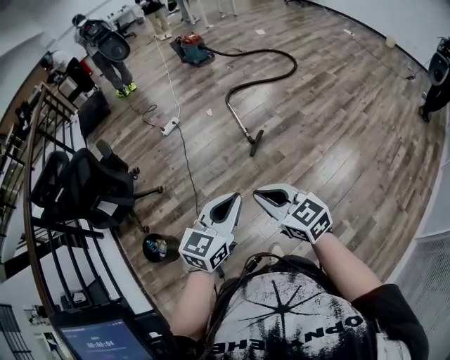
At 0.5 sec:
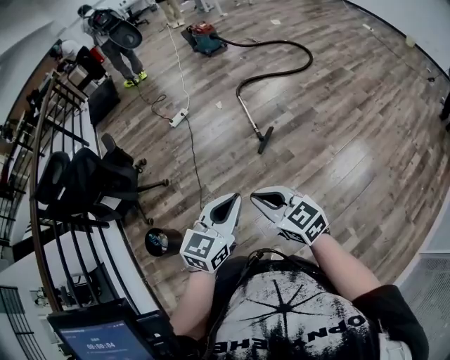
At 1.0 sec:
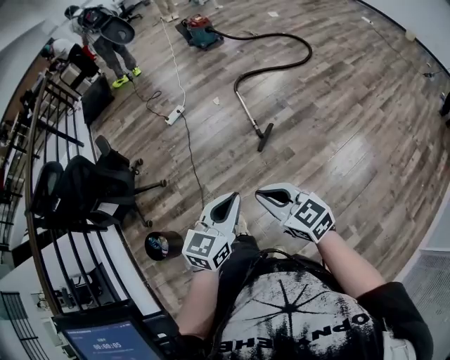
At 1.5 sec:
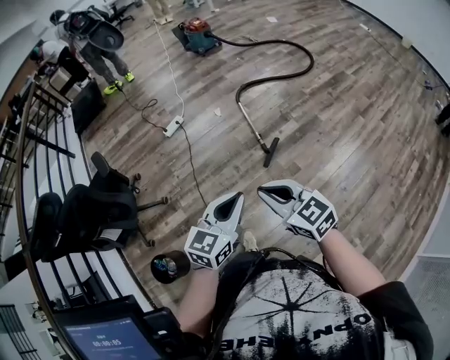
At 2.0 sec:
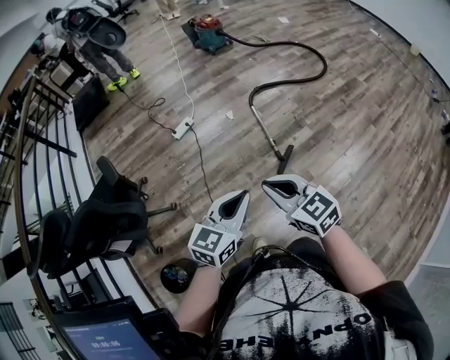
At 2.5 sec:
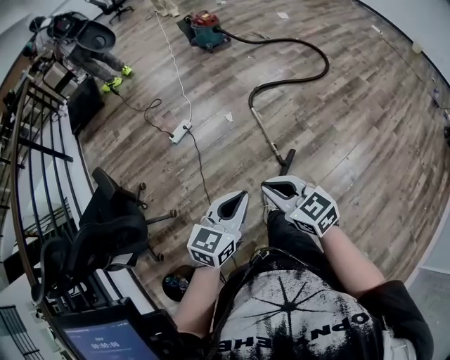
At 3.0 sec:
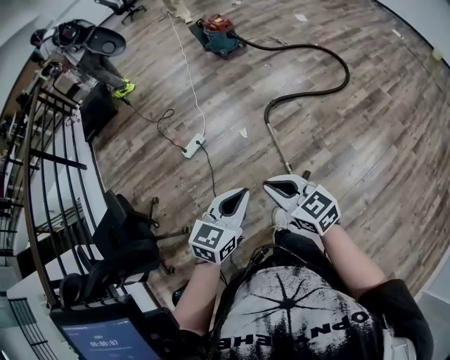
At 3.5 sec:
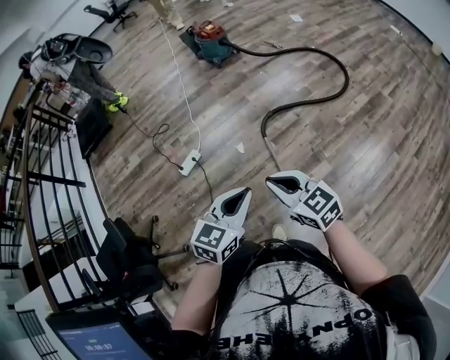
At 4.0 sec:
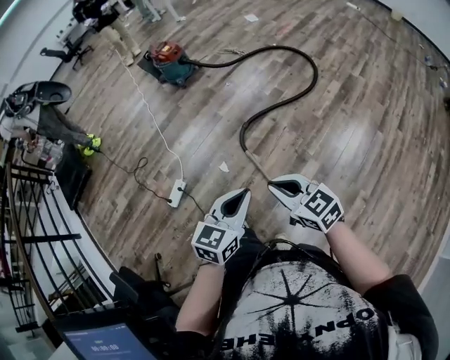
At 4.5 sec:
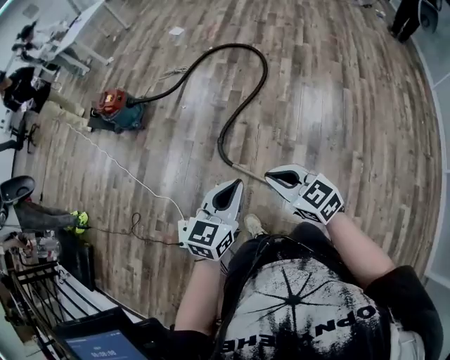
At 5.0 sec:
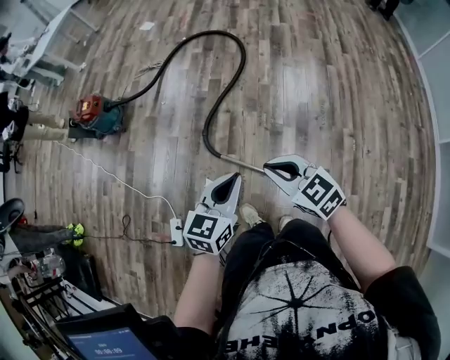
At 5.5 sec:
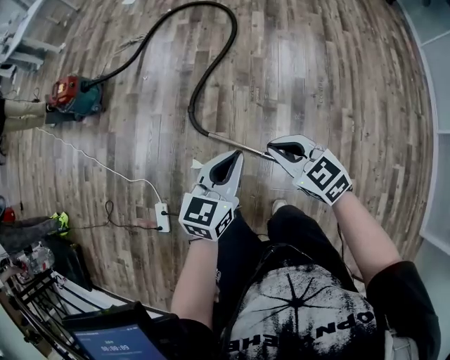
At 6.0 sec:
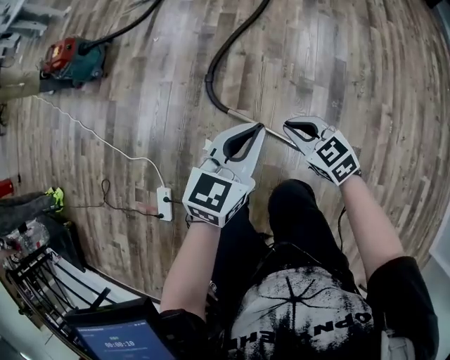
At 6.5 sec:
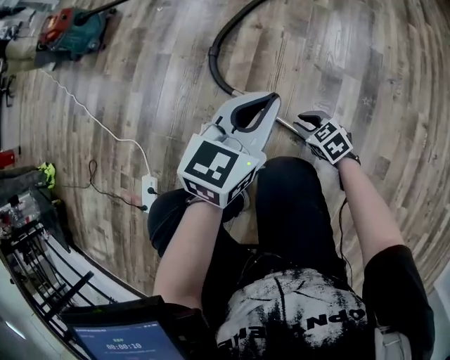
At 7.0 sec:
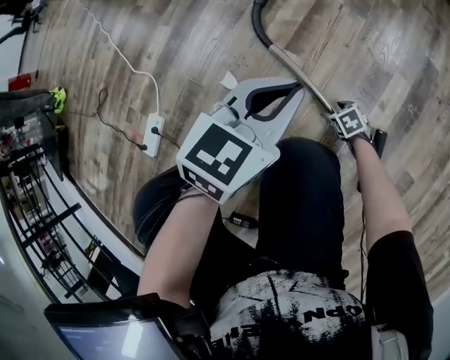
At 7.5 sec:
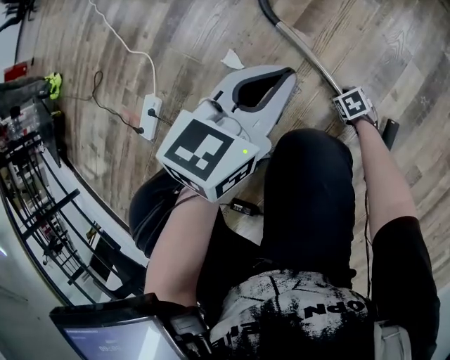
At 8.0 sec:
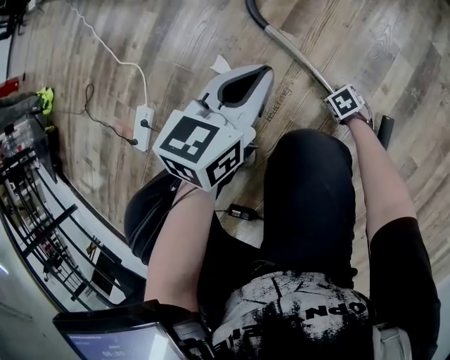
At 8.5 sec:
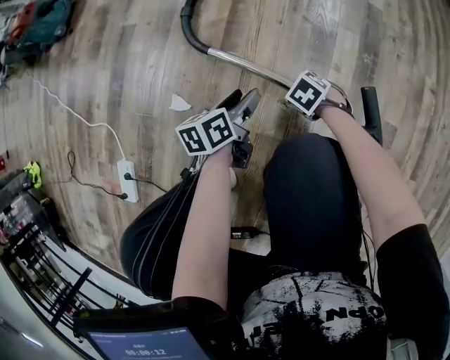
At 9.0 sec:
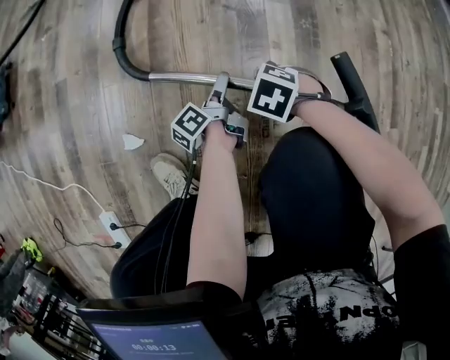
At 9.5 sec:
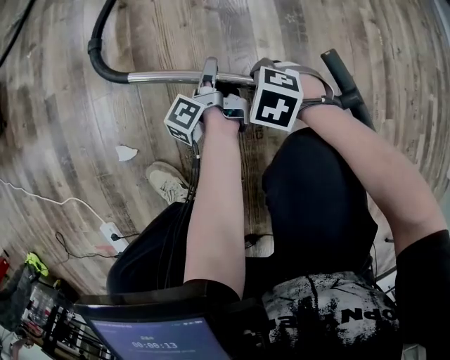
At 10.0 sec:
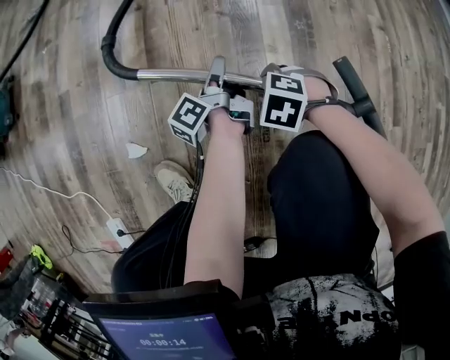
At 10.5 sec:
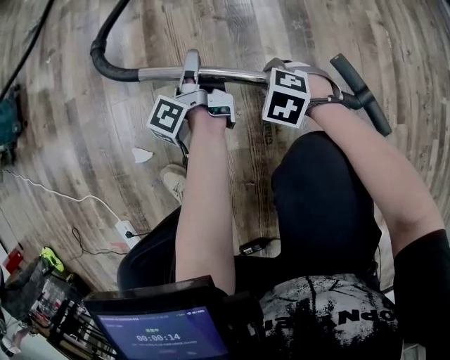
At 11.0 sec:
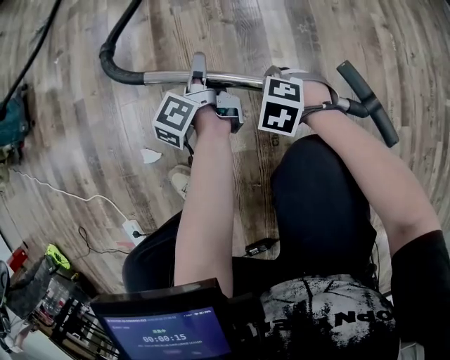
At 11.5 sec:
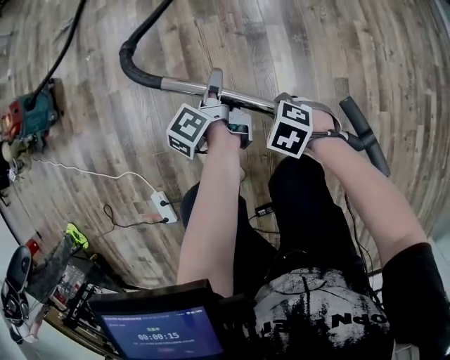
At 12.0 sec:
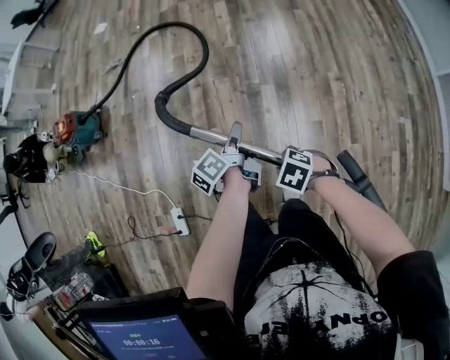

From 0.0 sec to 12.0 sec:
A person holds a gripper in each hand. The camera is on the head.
From 0.0 sec to 2.0 sec: Both grippers are carried forward, approximately 40 cm.
From 2.0 sec to 4.0 sec: The two grippers travel together, forward, about 50 cm.
From 4.0 sec to 6.0 sec: Both grippers travel together downward, roughly 35 cm. The left gripper turns by approximately 30 degrees. Meanwhile the right gripper swivels about 30 degrees.
From 6.0 sec to 8.0 sec: The right gripper shifts about 60 cm downward, tilts its fingers about 40 degrees downward, and opens. Meanwhile the left gripper is displaced downward by about 30 cm, and swivels approximately 20 degrees.
From 8.0 sec to 10.0 sec: The left gripper goes some 20 cm downward, rolls counterclockwise, seen from behind, by some 70 degrees, and opens. The right gripper moves upward, approximately 15 cm.
From 10.0 sec to 12.0 sec: Both grippers move upward, roughly 50 cm.

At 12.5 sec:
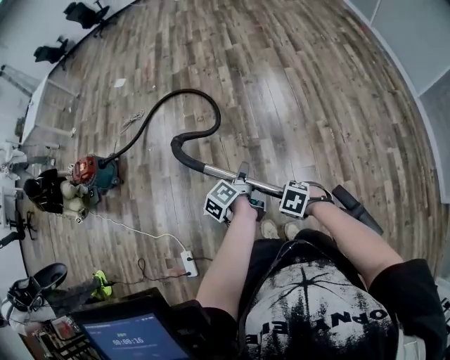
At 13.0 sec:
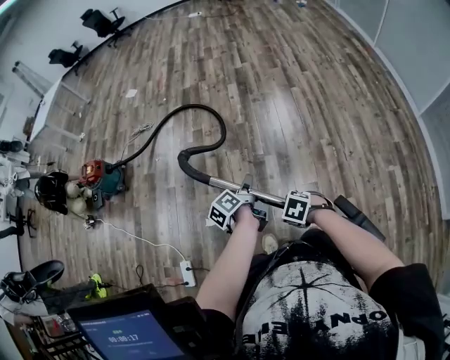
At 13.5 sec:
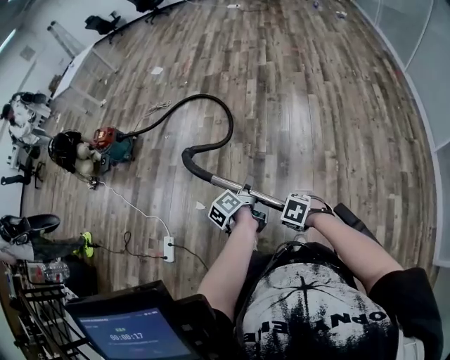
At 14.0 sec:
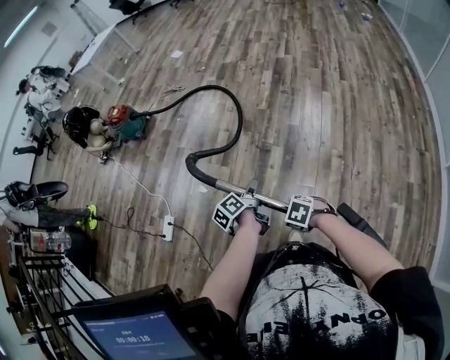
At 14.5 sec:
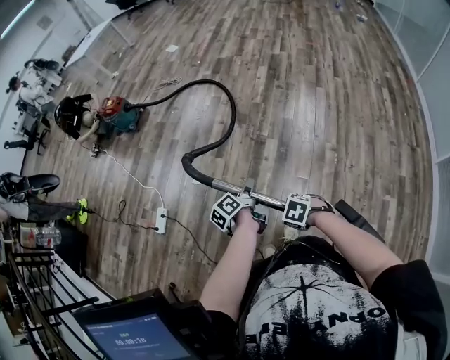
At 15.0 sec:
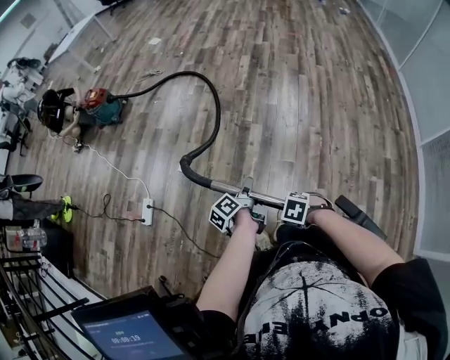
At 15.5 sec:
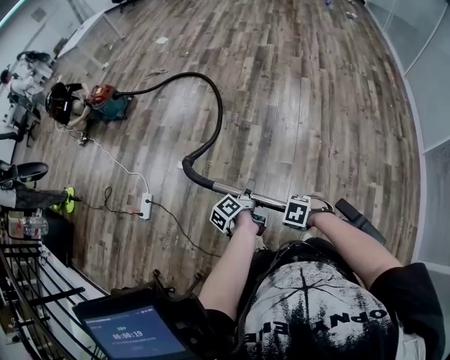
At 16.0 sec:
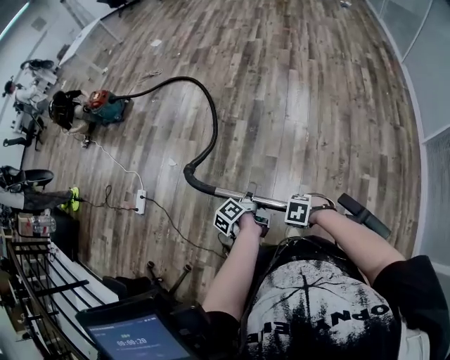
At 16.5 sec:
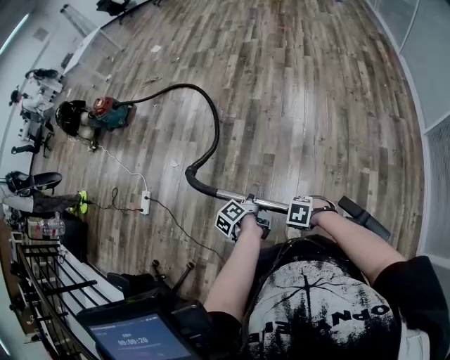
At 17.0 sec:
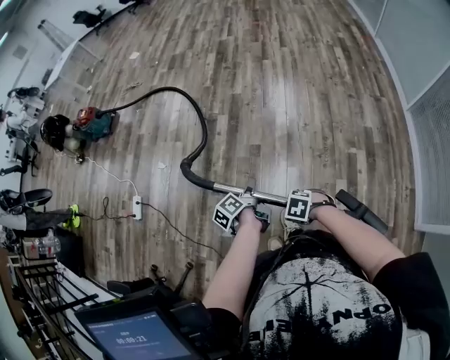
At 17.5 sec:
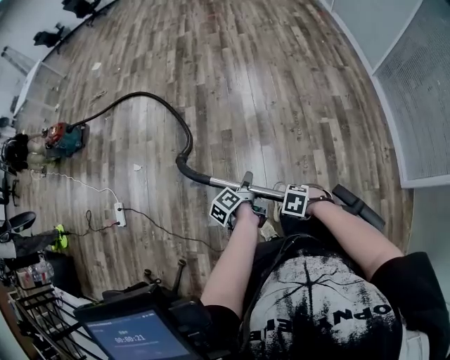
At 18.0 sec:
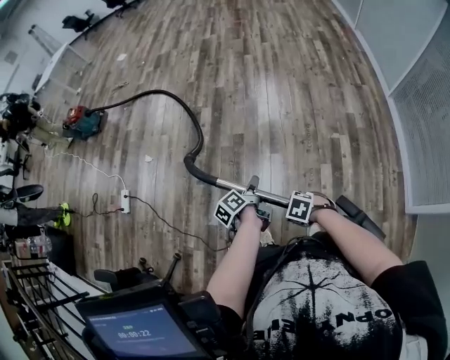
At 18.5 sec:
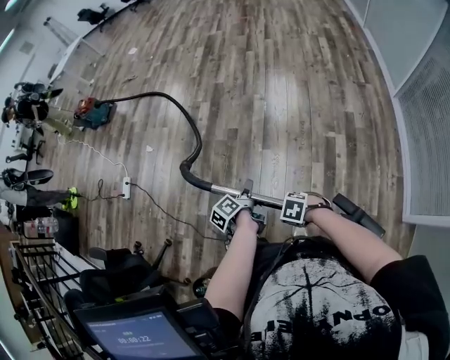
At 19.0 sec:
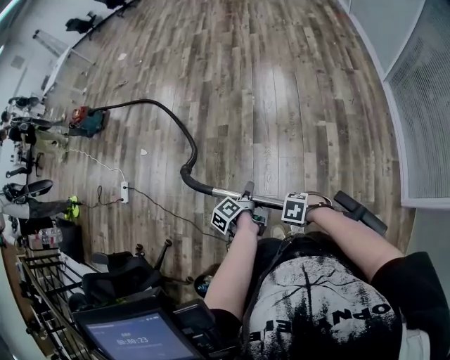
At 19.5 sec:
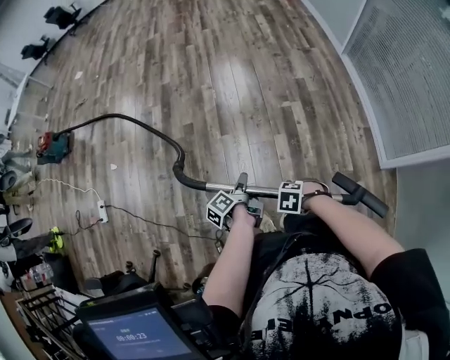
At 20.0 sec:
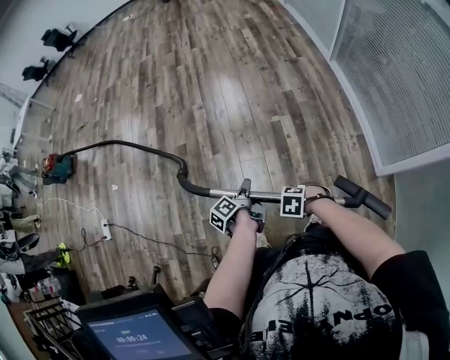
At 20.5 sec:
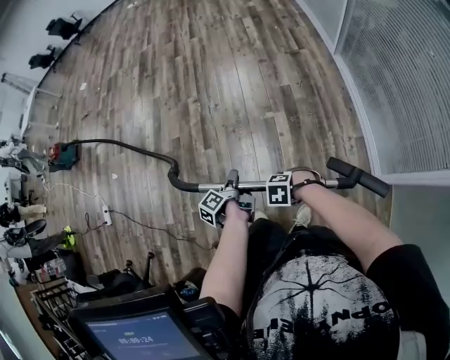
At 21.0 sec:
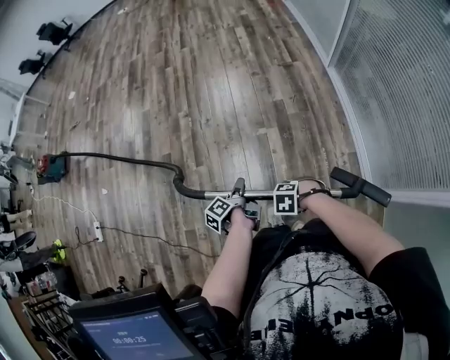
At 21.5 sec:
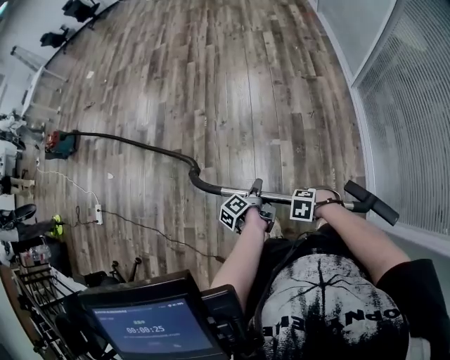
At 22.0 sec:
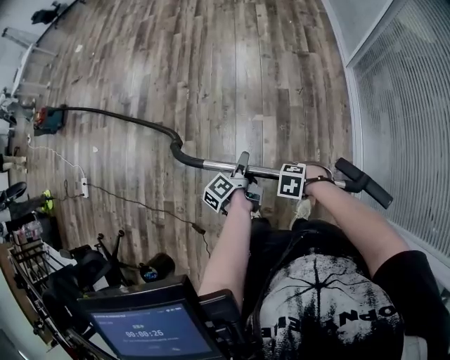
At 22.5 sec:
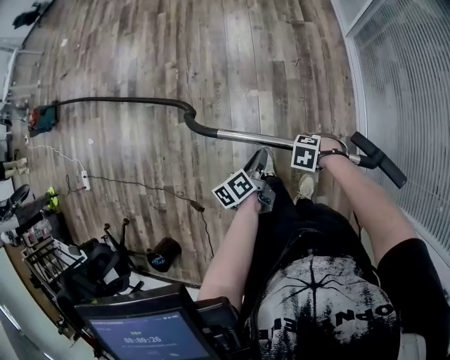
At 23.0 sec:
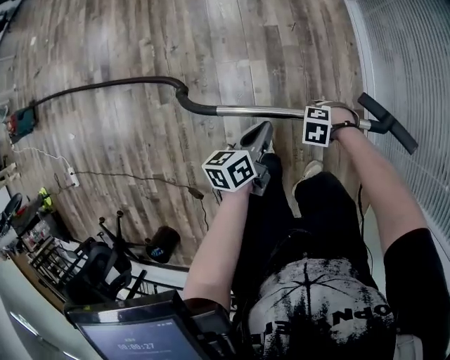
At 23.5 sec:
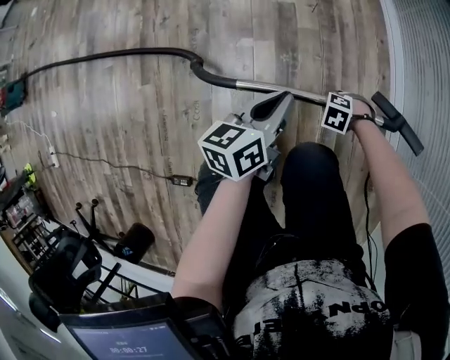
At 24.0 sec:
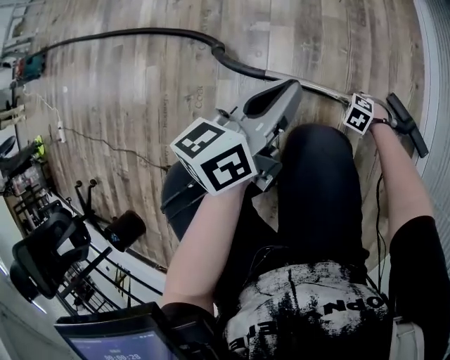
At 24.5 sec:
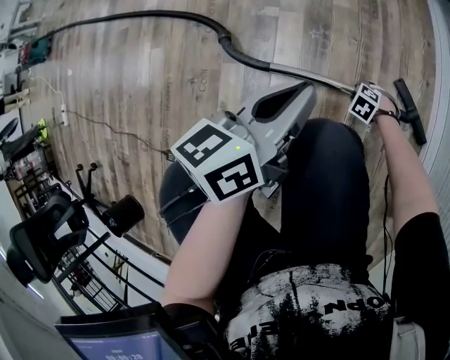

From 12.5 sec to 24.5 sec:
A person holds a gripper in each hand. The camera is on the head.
From 12.5 sec to 14.5 sec: The right gripper shifts by roughly 25 cm, and swivels roughly 20 degrees, while the left gripper shifts by approximately 25 cm, and changes its angle by roughly 20 degrees.
From 14.5 sec to 16.5 sec: The right gripper shifts by approximately 35 cm; the left gripper changes place by some 35 cm.
From 16.5 sec to 18.5 sec: The right gripper shifts by approximately 30 cm; the left gripper shifts by roughly 30 cm.
From 18.5 sec to 20.5 sec: The left gripper shifts by approximately 35 cm, while the right gripper shifts by about 35 cm.
From 20.5 sec to 22.5 sec: The left gripper shifts by approximately 30 cm, and rotates approximately 30 degrees, while the right gripper changes place by some 35 cm.
From 22.5 sec to 24.5 sec: The left gripper moves downward, some 25 cm, and turns by some 30 degrees; the right gripper heads downward, covering some 60 cm, and opens up.

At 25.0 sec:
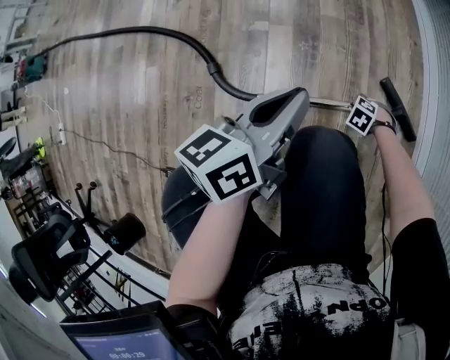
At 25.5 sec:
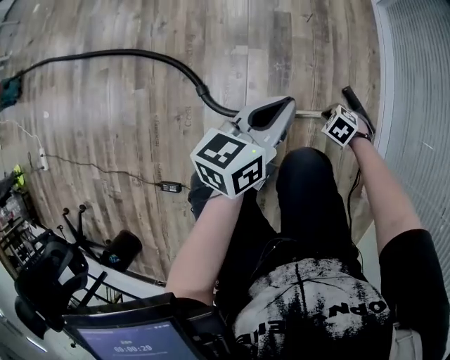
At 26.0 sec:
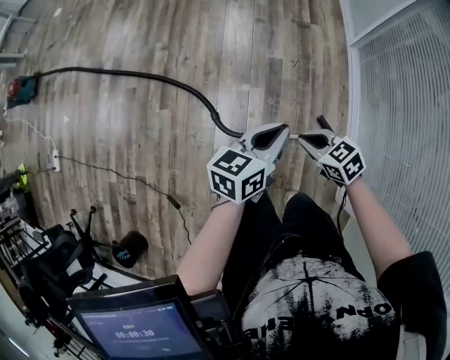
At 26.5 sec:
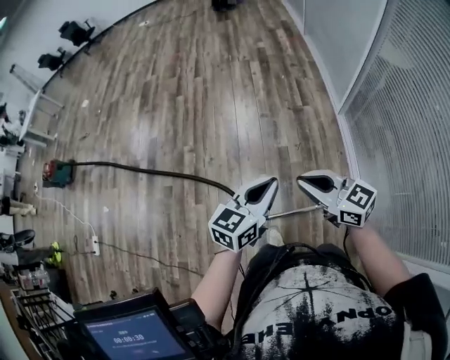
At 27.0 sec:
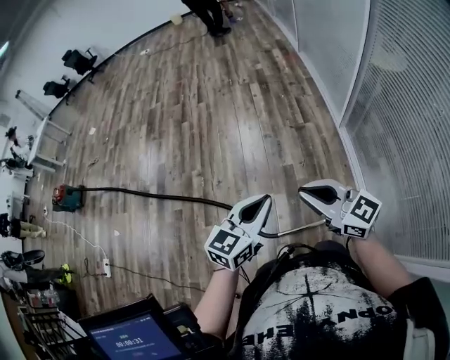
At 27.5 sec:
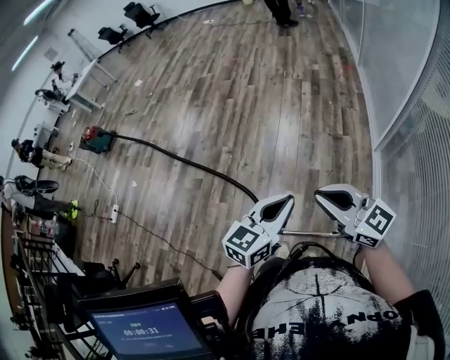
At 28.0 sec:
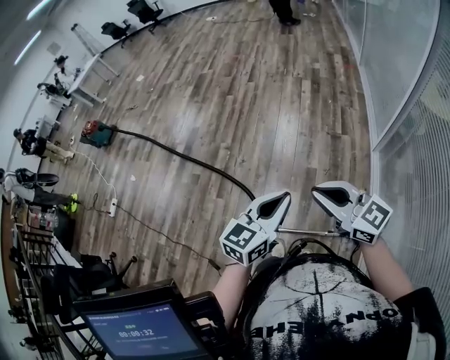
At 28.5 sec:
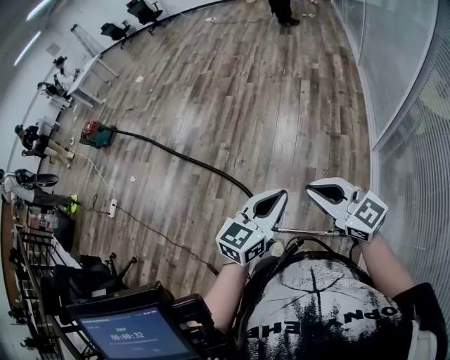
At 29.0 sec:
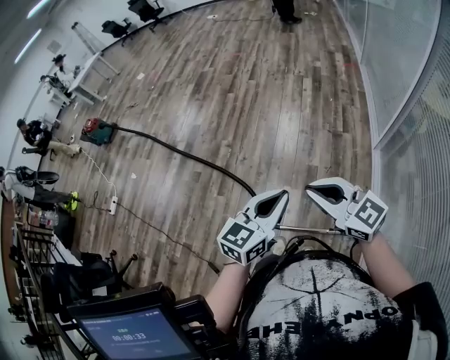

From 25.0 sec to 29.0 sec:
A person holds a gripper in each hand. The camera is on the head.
From 25.0 sec to 27.0 sec: The right gripper travels upward by about 1 m, and angles its fingers upward, by approximately 80 degrees. Meanwhile the left gripper is displaced upward by approximately 60 cm, and turns by about 40 degrees.
From 27.0 sec to 29.0 sec: The left gripper shifts by about 5 cm.
